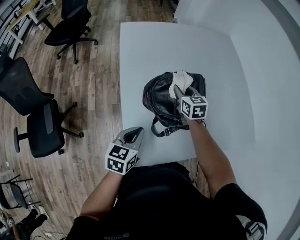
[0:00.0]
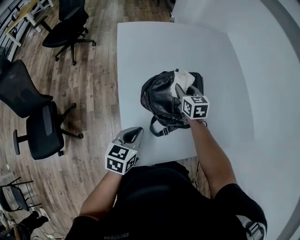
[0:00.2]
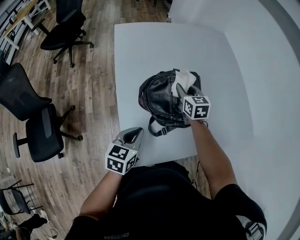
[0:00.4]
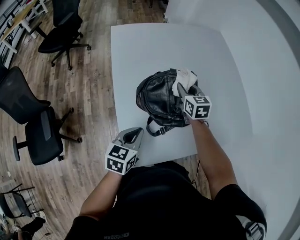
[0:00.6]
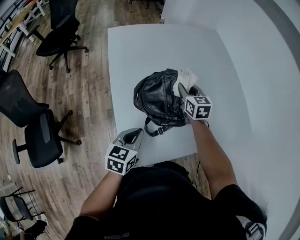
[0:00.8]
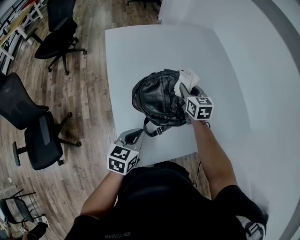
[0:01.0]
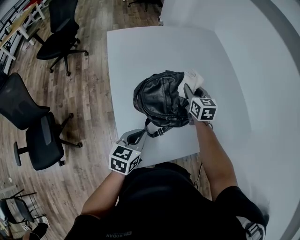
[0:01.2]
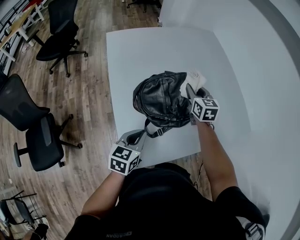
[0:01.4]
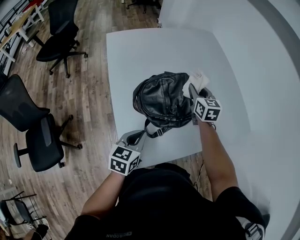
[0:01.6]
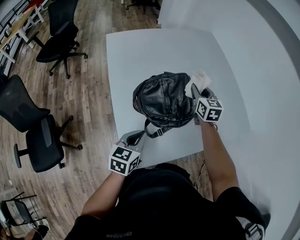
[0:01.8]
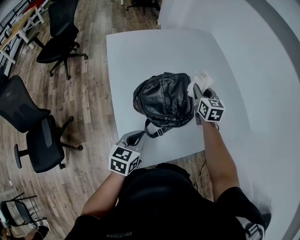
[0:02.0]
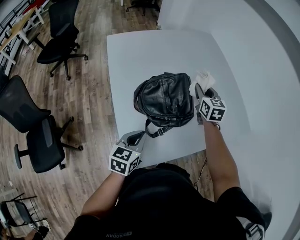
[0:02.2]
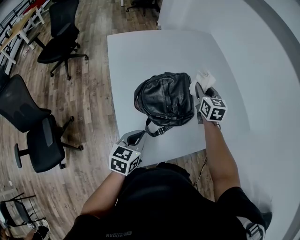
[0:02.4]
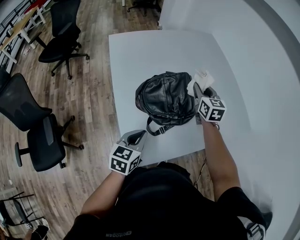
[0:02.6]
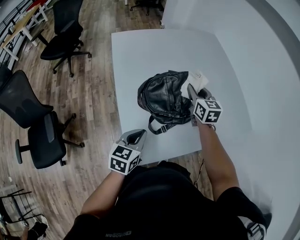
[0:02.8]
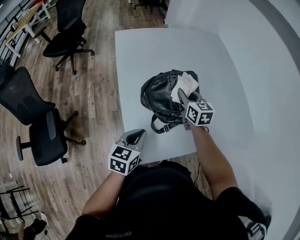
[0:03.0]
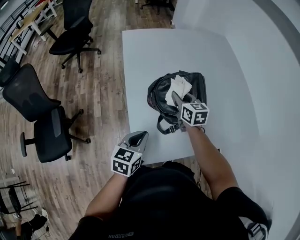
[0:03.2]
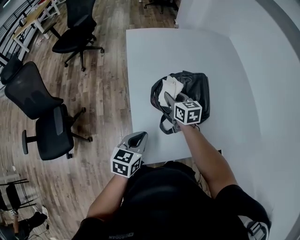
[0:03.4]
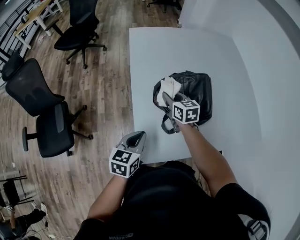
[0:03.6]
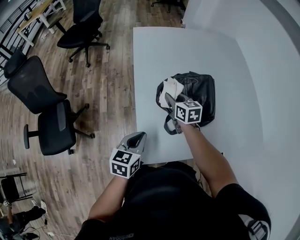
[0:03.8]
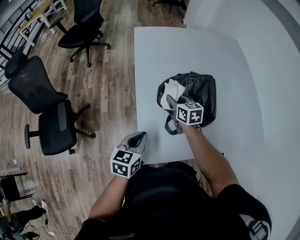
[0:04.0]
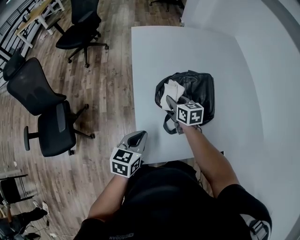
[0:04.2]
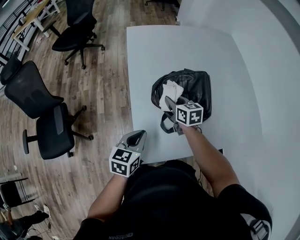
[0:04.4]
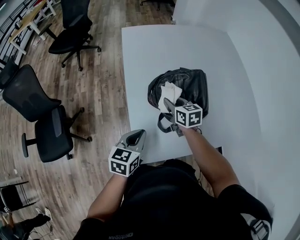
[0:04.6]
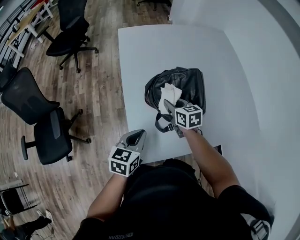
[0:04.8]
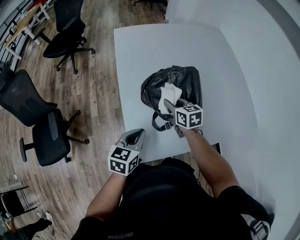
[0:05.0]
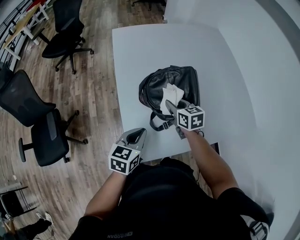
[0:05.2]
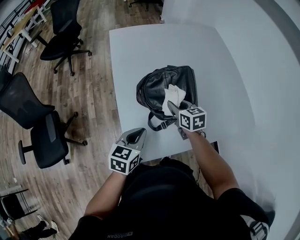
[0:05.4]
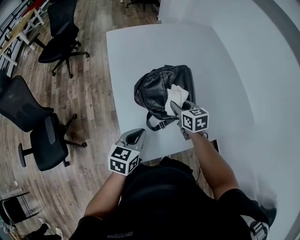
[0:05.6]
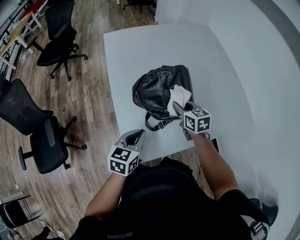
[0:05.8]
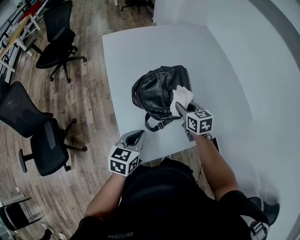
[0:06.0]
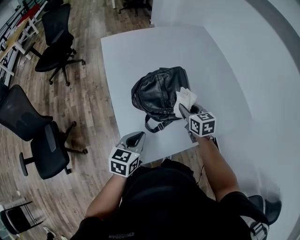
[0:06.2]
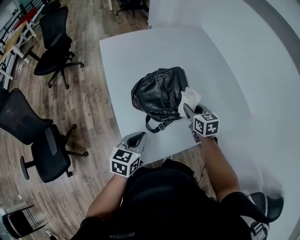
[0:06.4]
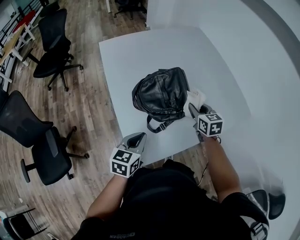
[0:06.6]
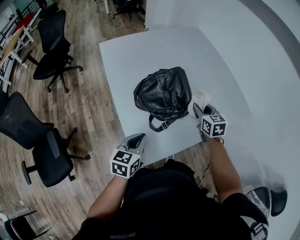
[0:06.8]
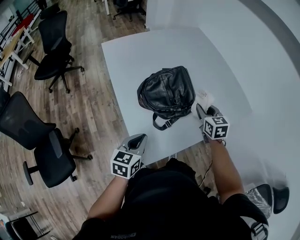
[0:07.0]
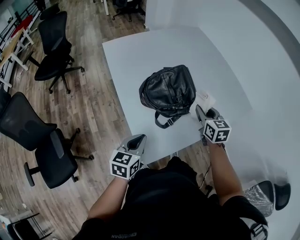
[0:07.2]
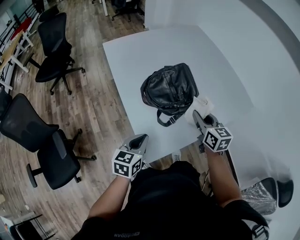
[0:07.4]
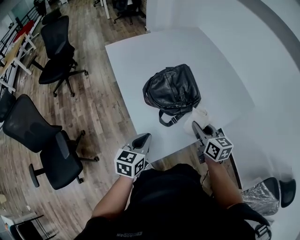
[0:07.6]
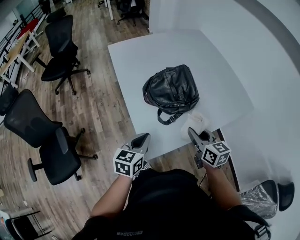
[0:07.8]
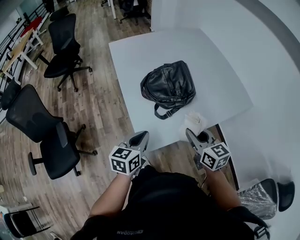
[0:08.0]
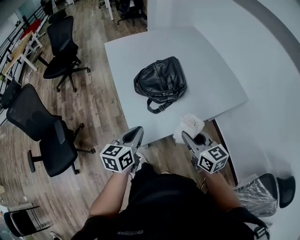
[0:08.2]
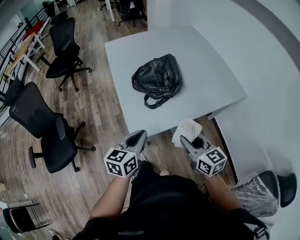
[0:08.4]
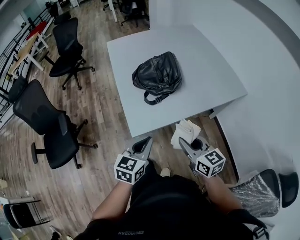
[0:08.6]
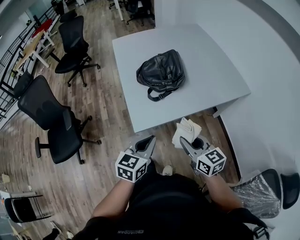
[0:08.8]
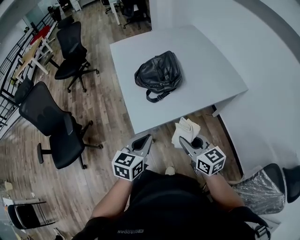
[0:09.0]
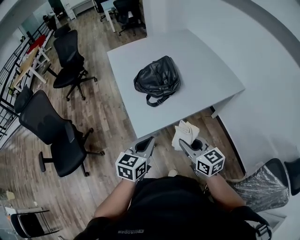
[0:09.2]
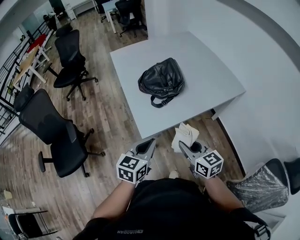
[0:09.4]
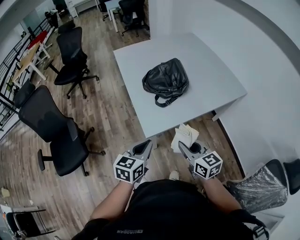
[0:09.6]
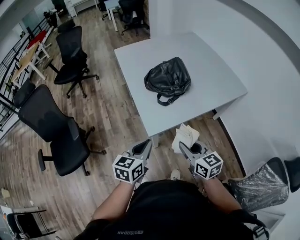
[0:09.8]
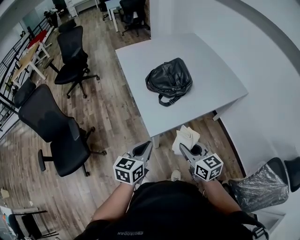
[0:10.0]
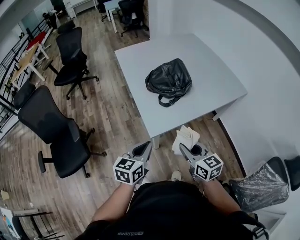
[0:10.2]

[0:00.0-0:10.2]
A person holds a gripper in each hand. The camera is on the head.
0:00.0 to 0:01.4: The right gripper goes about 15 cm to the right and upward.
0:01.4 to 0:03.0: The right gripper heads backward and to the left, covering approximately 10 cm.
0:03.0 to 0:04.4: The right gripper travels to the left and downward by some 15 cm.
0:04.4 to 0:05.8: The right gripper goes approximately 15 cm to the right. Meanwhile the left gripper shifts about 5 cm to the right.
0:05.8 to 0:07.2: The right gripper shifts roughly 10 cm upward, to the right and backward, and rotates approximately 20 degrees, while the left gripper goes approximately 5 cm to the left.
0:07.2 to 0:08.8: The right gripper goes approximately 30 cm backward, and swivels roughly 30 degrees. The left gripper moves backward and to the right, roughly 25 cm.
0:08.8 to 0:10.2: The grippers both shift to the left by roughly 10 cm.

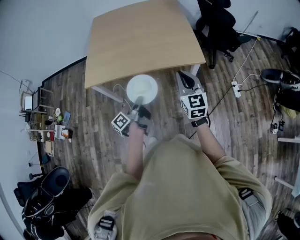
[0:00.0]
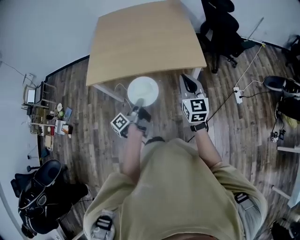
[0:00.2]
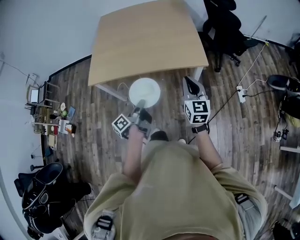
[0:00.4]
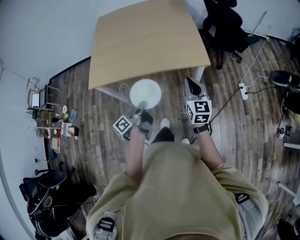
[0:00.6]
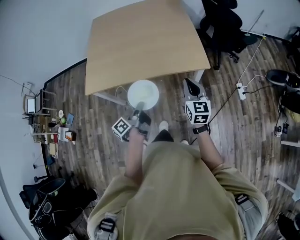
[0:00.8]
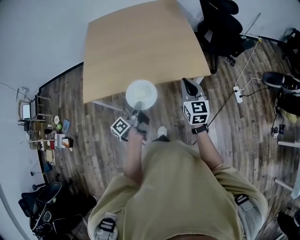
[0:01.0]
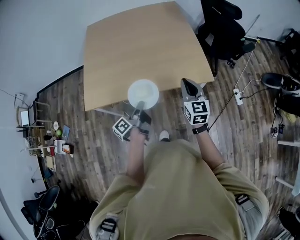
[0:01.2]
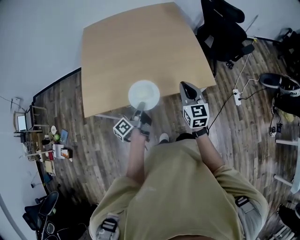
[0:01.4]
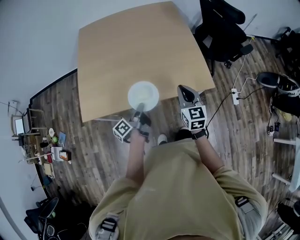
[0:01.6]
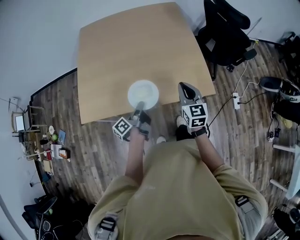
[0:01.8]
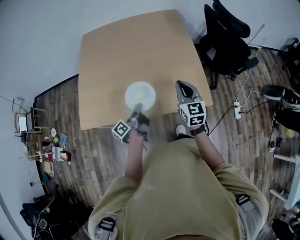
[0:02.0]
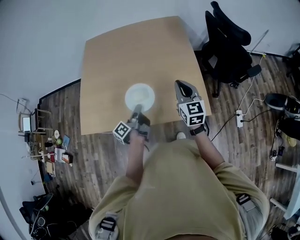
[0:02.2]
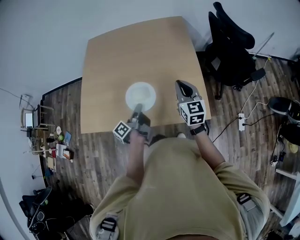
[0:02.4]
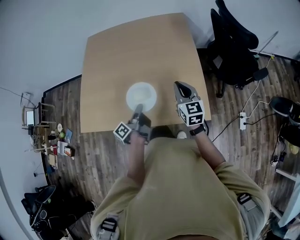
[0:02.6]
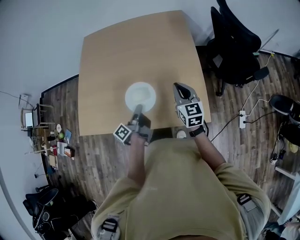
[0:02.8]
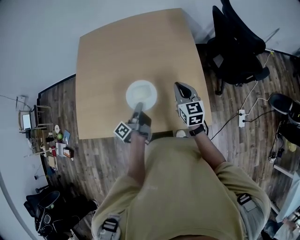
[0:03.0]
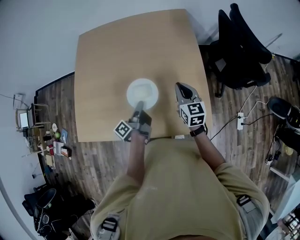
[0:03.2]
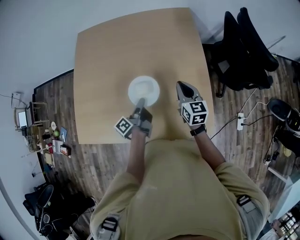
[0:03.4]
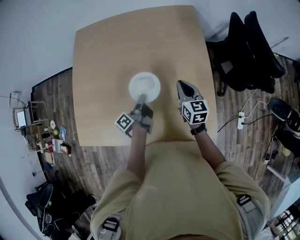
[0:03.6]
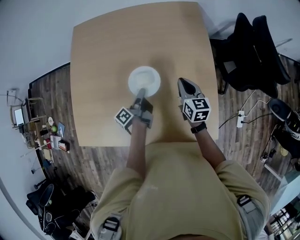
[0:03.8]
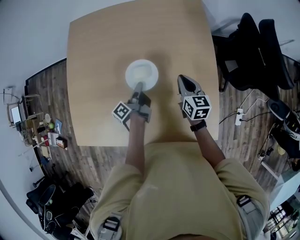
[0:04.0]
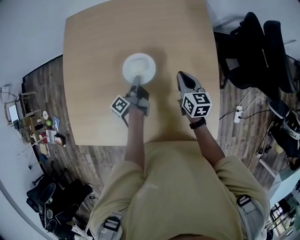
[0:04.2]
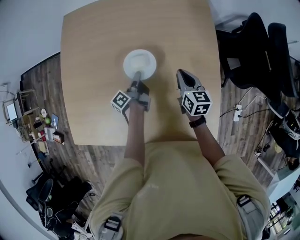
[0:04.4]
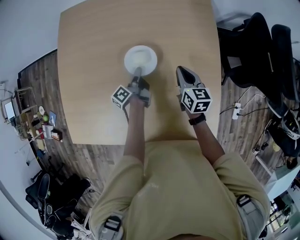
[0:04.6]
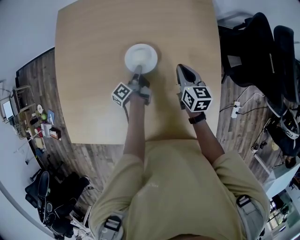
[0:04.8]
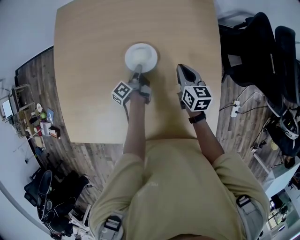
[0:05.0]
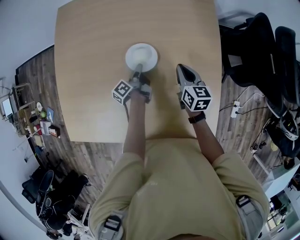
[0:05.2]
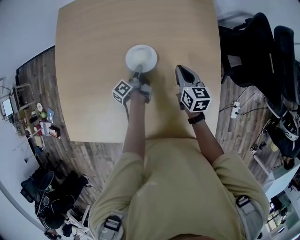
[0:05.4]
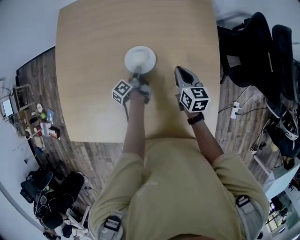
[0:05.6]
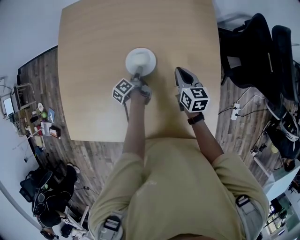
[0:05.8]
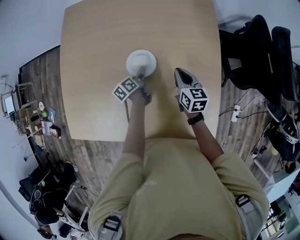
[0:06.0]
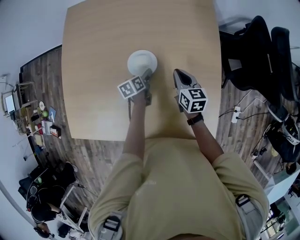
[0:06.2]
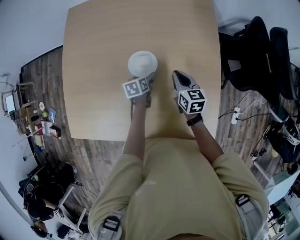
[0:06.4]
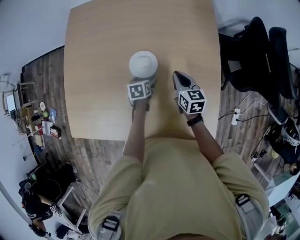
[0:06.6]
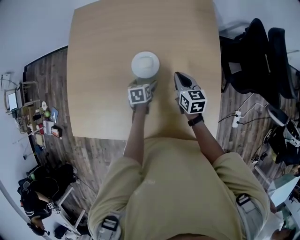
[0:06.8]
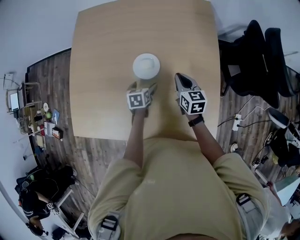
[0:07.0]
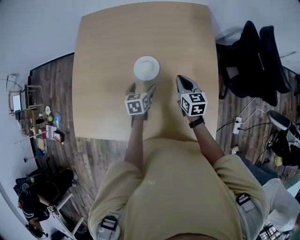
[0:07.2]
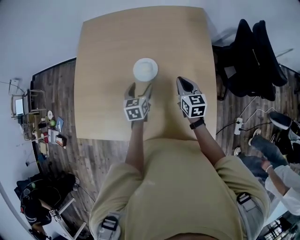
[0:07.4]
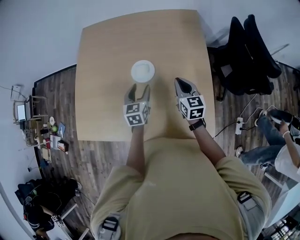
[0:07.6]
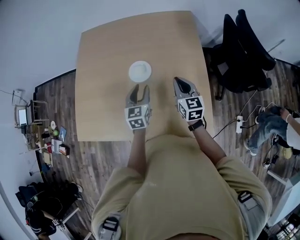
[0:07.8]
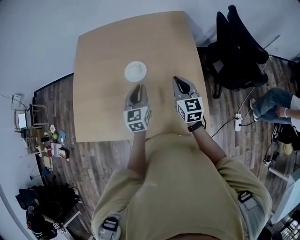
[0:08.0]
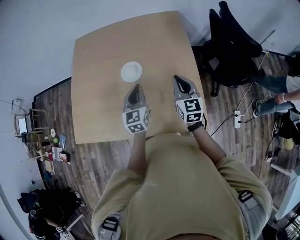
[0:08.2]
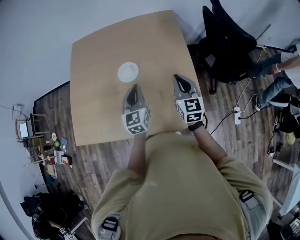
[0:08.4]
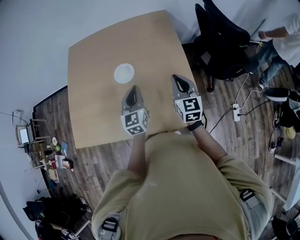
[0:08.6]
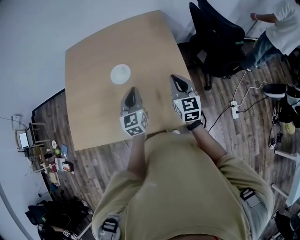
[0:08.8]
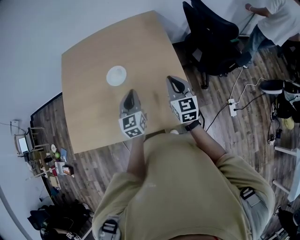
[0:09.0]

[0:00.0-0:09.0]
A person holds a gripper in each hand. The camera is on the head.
0:00.0 to 0:01.6: Both grippers travel together forward, about 25 cm.
0:01.6 to 0:03.0: The grippers both shift forward and to the right by some 25 cm.
0:03.0 to 0:04.4: Both grippers move forward and downward, some 25 cm.
0:04.4 to 0:06.0: The left gripper moves downward, some 5 cm, turns by approximately 30 degrees, and opens.
0:06.0 to 0:07.6: The left gripper moves upward and backward, approximately 20 cm, rolls clockwise, seen from behind, by about 60 degrees, and opens and closes again; the right gripper shifts about 15 cm backward and upward.
0:07.6 to 0:09.0: The two grippers go approximately 20 cm backward, to the right and upward. The left gripper closes up.

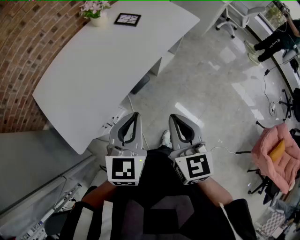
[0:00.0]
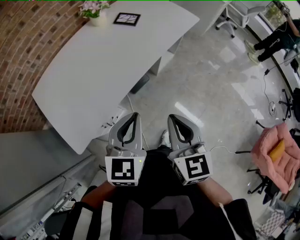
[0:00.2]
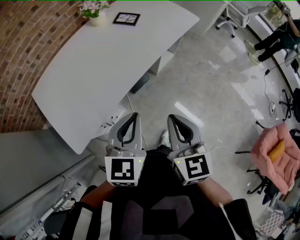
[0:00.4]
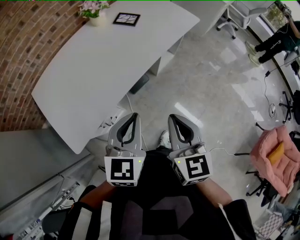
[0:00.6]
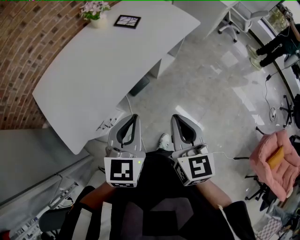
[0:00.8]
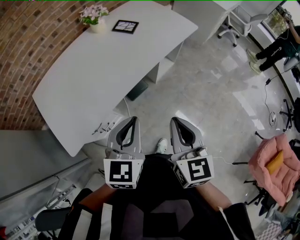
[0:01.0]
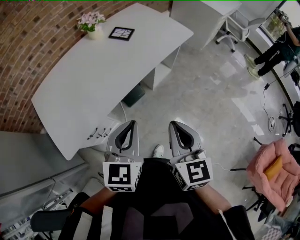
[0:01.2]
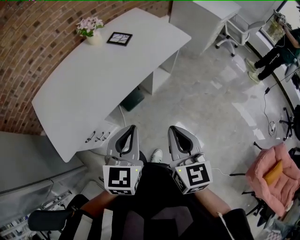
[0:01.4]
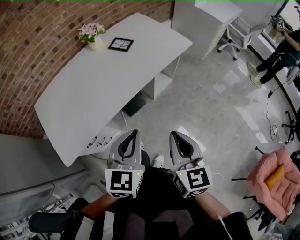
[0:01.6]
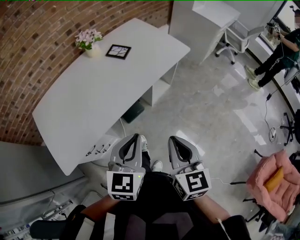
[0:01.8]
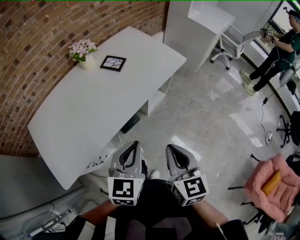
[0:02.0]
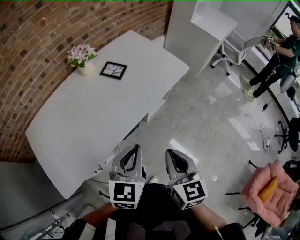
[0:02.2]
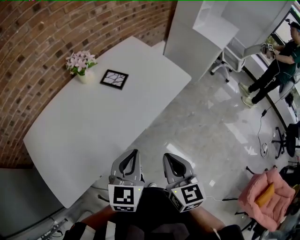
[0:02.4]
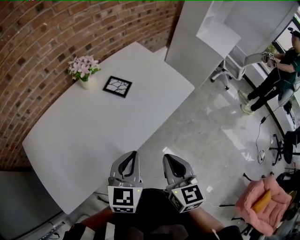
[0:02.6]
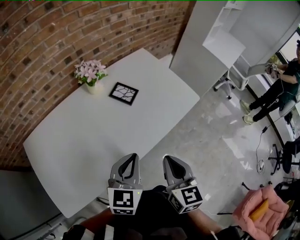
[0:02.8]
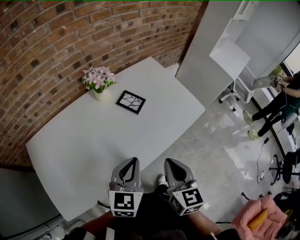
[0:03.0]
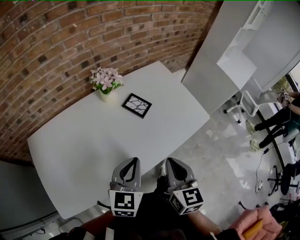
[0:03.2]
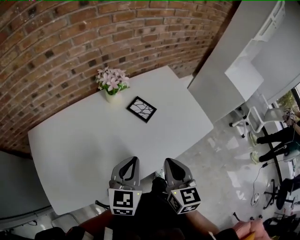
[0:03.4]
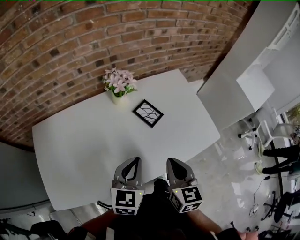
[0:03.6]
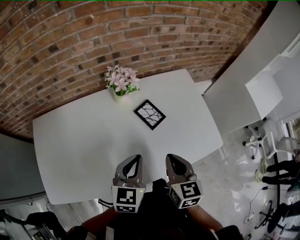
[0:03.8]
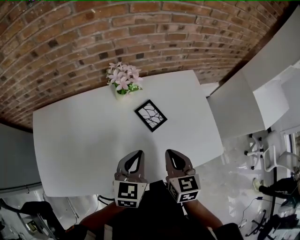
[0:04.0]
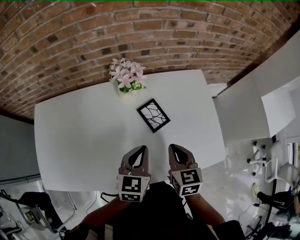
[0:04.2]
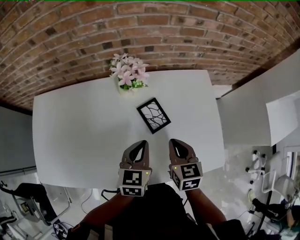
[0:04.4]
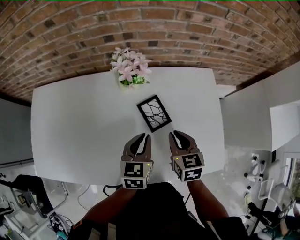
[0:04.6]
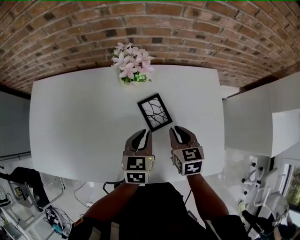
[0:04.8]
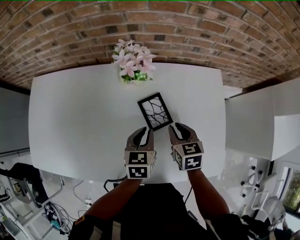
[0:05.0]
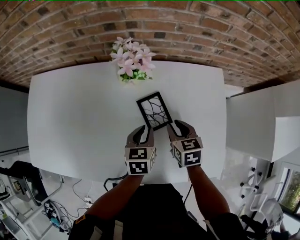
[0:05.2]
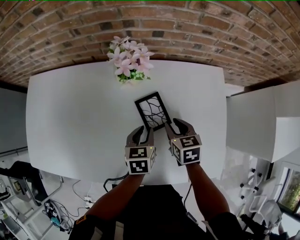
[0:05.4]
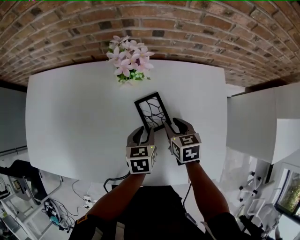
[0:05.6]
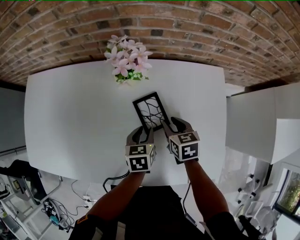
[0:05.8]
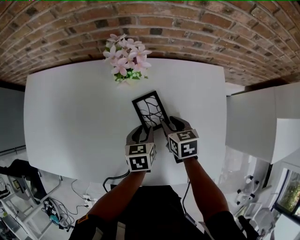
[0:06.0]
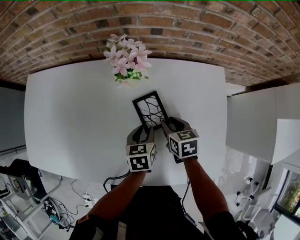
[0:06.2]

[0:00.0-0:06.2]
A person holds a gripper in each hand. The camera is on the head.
0:00.0 to 0:01.6: The grippers both shift to the right by some 10 cm.
0:01.6 to 0:03.2: Both grippers move forward, approximately 30 cm.
0:03.2 to 0:04.6: The right gripper ends up roughly 30 cm from where it was, and changes its angle by about 40 degrees. The left gripper ends up roughly 25 cm from where it was, and swivels approximately 40 degrees.
0:04.6 to 0:06.2: The right gripper travels downward and forward by approximately 15 cm, and opens up. The left gripper goes approximately 10 cm downward, rotates some 20 degrees, and opens its fingers.
